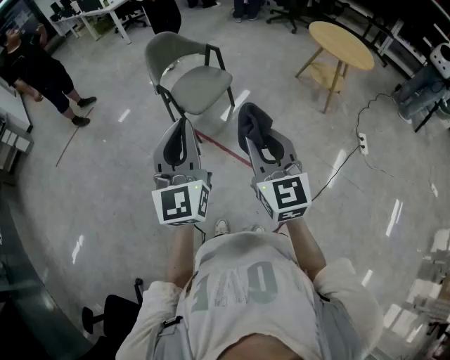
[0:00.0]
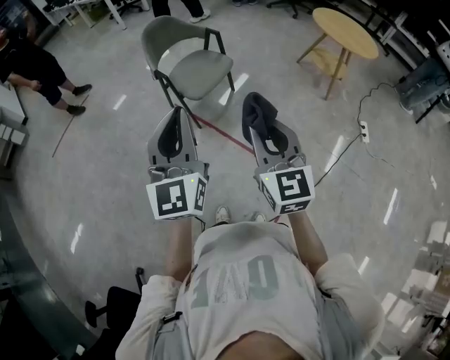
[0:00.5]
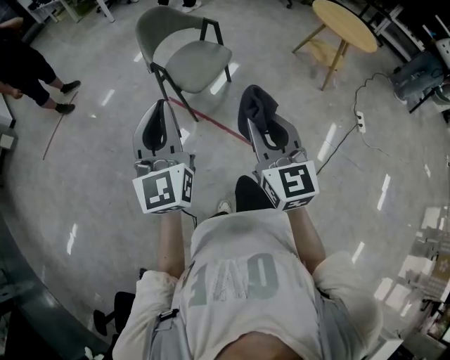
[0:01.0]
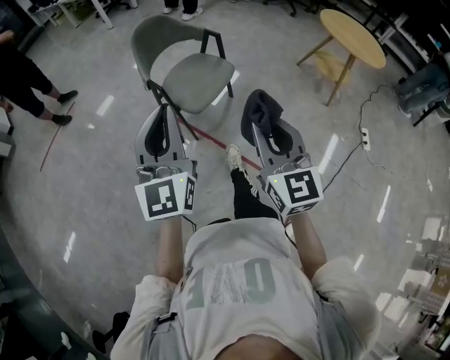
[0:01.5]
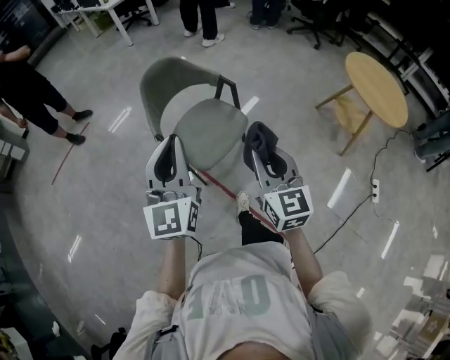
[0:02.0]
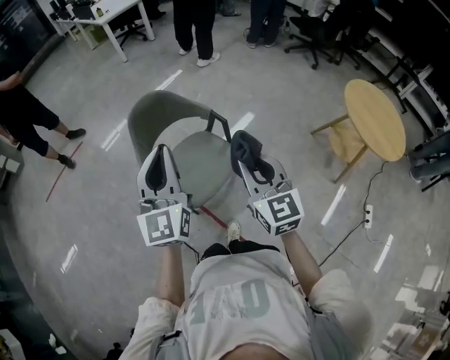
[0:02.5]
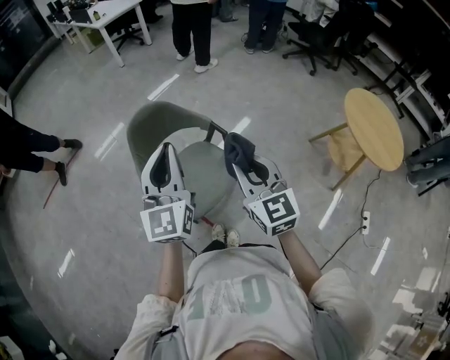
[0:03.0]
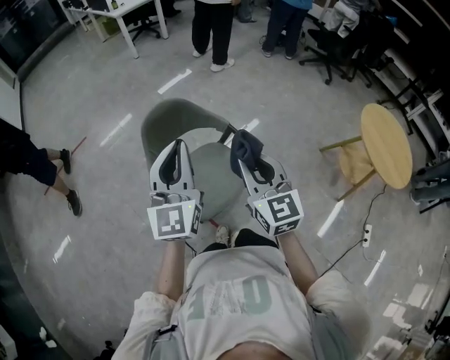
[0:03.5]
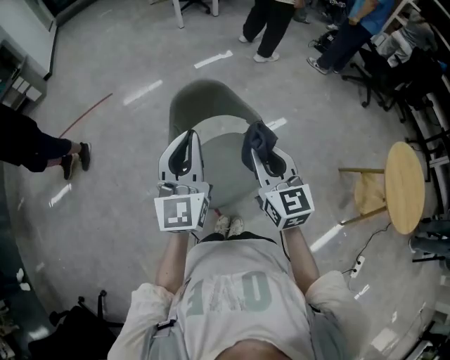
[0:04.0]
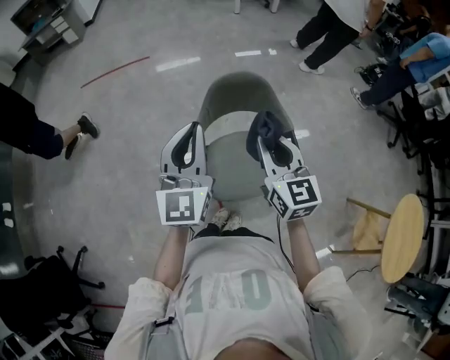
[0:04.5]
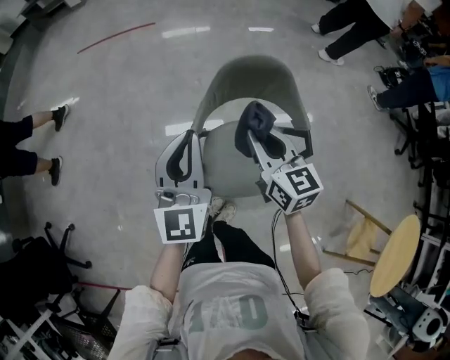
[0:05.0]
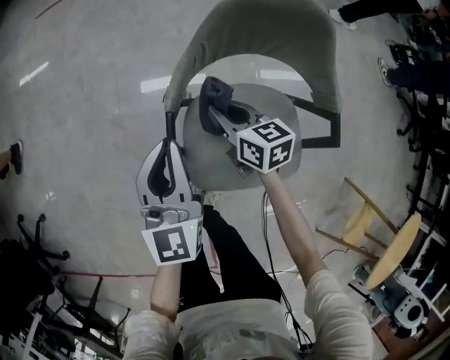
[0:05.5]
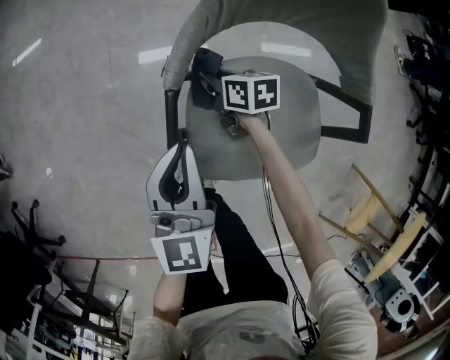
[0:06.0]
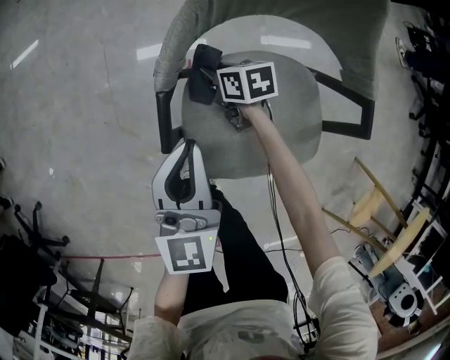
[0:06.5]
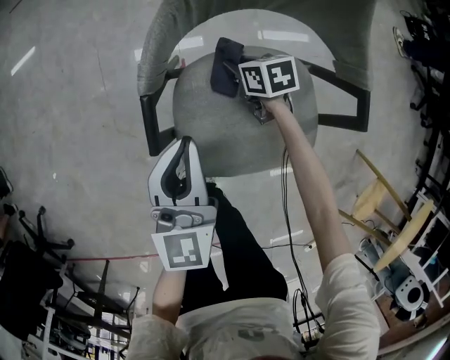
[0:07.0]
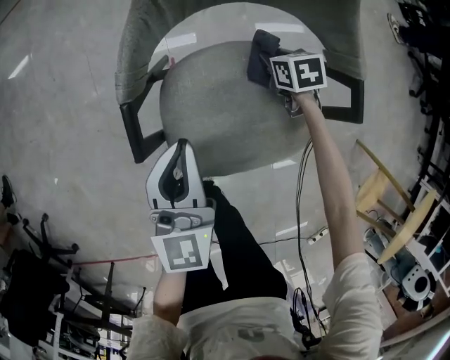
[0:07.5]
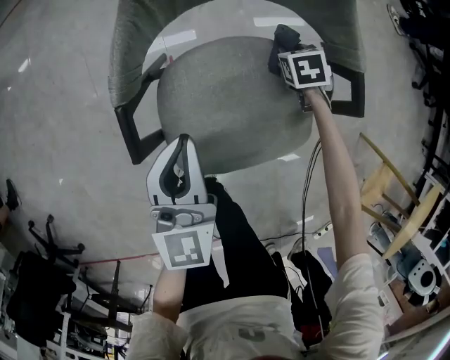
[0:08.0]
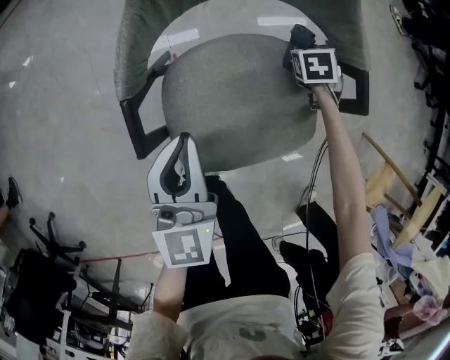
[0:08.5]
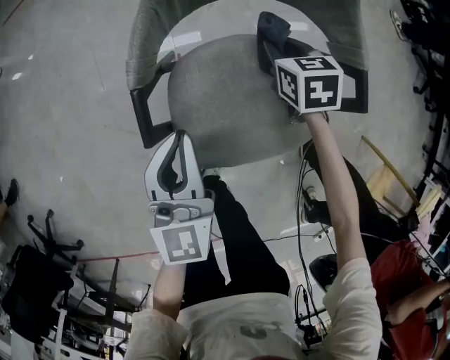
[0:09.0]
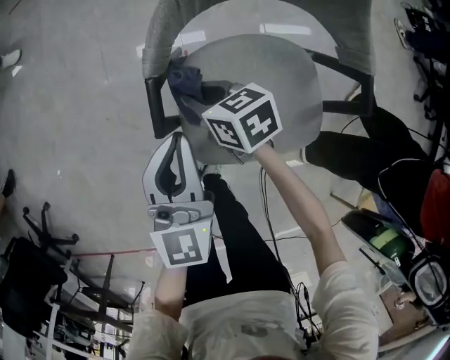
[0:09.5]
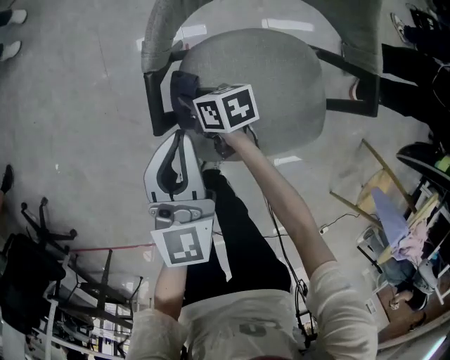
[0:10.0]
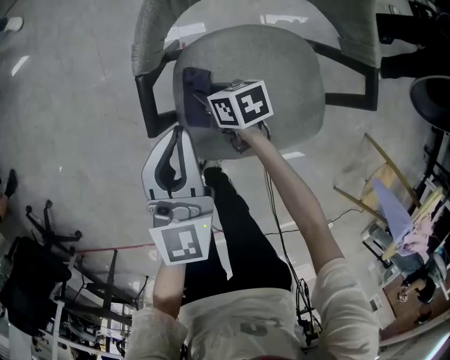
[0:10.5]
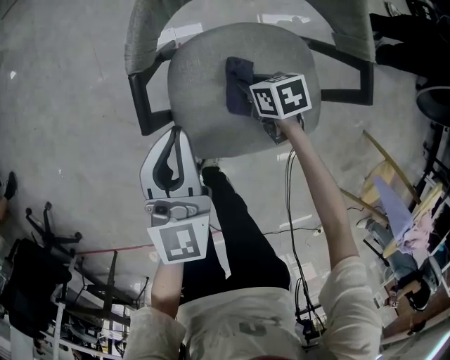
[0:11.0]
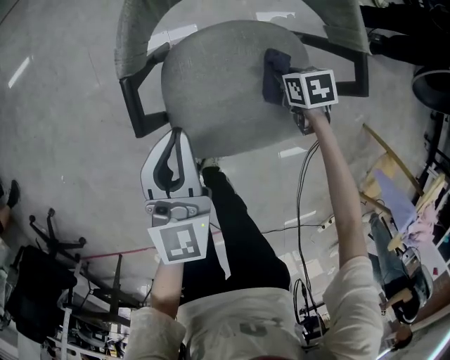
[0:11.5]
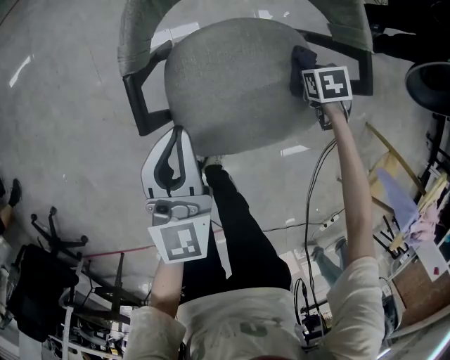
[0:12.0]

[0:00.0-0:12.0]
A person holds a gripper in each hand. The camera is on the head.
0:00.0 to 0:02.0: The two grippers go some 40 cm forward.
0:02.0 to 0:04.0: The two grippers go roughly 25 cm forward. The right gripper changes its angle by about 20 degrees.
0:04.0 to 0:06.0: Both grippers move downward, approximately 50 cm. The right gripper tilts its fingers approximately 40 degrees downward. Meanwhile the left gripper changes its angle by about 40 degrees.
0:06.0 to 0:08.0: The left gripper changes place by some 10 cm. The right gripper moves some 30 cm, and swivels about 50 degrees.
0:08.0 to 0:10.0: The right gripper goes upward and returns, some 10 cm each way, and swivels some 50 degrees. The left gripper changes place by approximately 5 cm.
0:10.0 to 0:12.0: The right gripper ends up some 35 cm from where it was, and angles its fingers downward, by about 40 degrees.

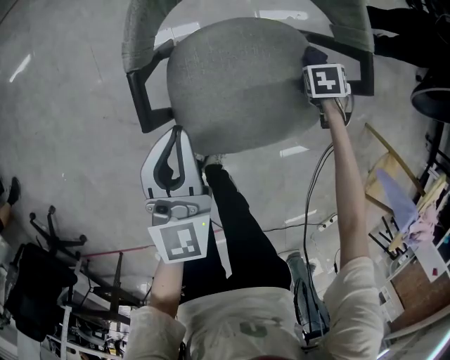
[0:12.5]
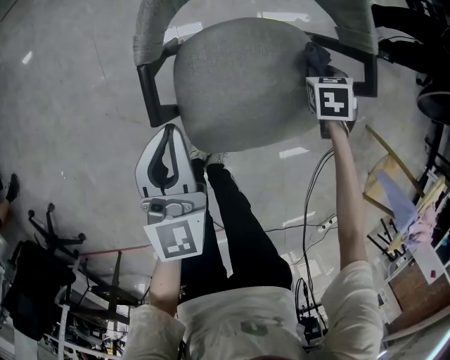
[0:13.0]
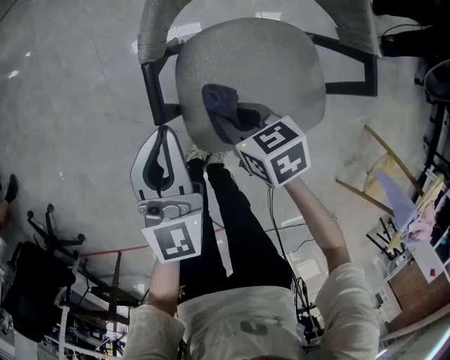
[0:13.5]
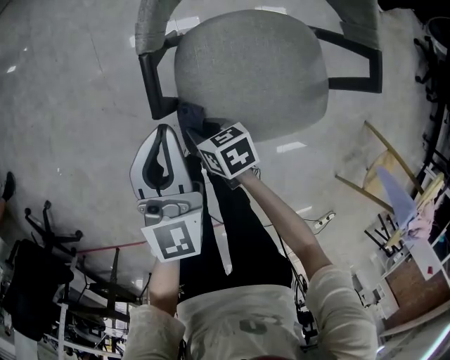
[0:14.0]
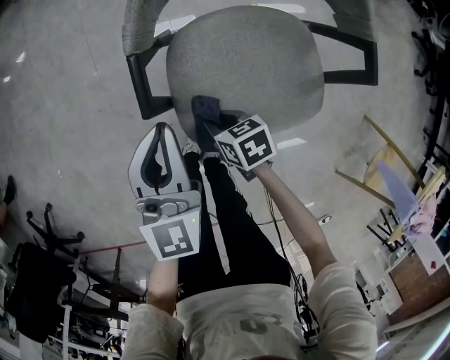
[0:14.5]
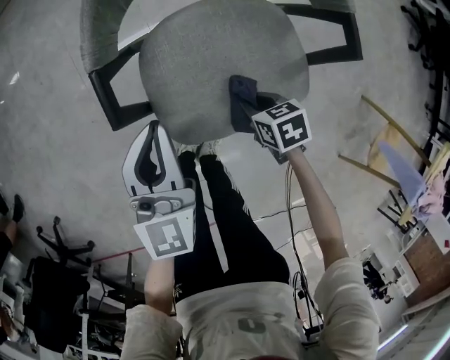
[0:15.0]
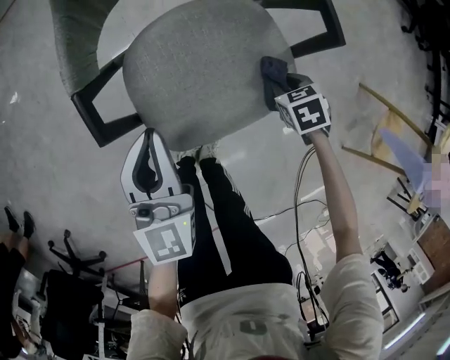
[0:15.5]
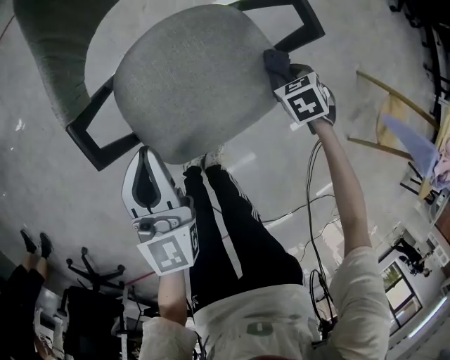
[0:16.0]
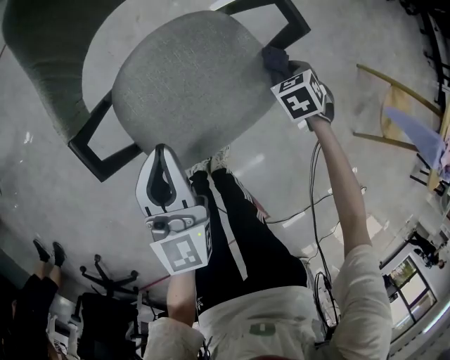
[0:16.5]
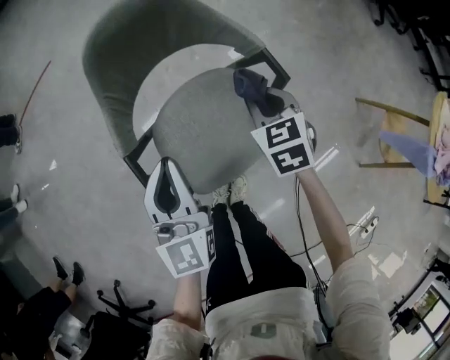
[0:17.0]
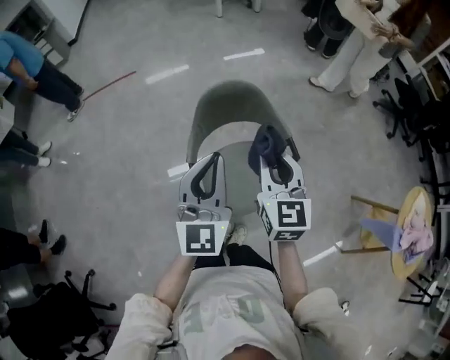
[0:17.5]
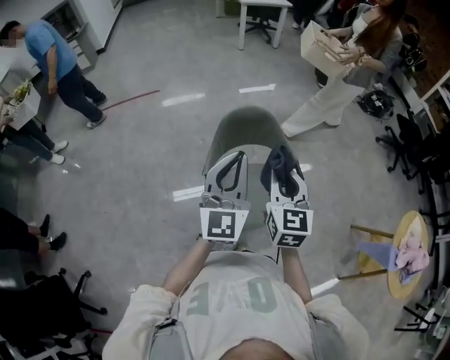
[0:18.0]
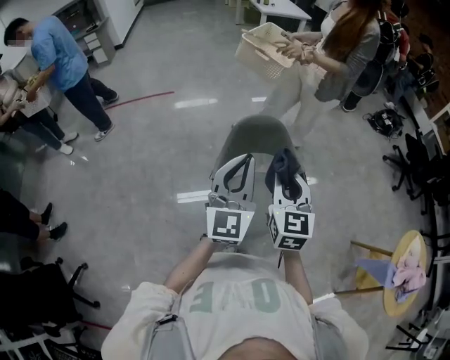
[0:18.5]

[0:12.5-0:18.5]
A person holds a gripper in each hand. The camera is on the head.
0:12.5 to 0:14.5: The right gripper reaches some 10 cm upward, then returns, and turns by approximately 50 degrees.
0:14.5 to 0:16.5: The right gripper changes place by about 35 cm, and changes its angle by approximately 40 degrees; the left gripper changes place by about 15 cm.
0:16.5 to 0:18.5: The left gripper goes approximately 40 cm upward, and swivels some 30 degrees; the right gripper heads upward and to the left, covering some 60 cm, and tips its fingers upward by roughly 60 degrees.

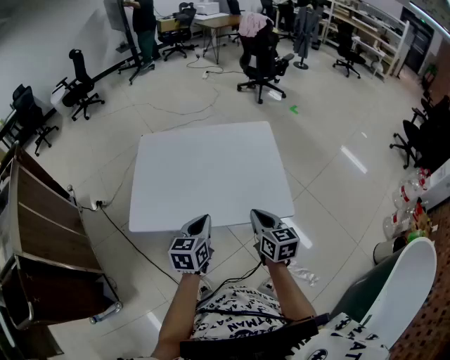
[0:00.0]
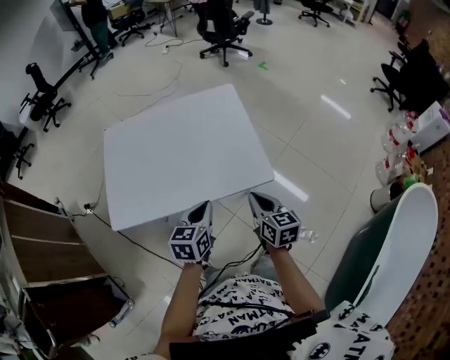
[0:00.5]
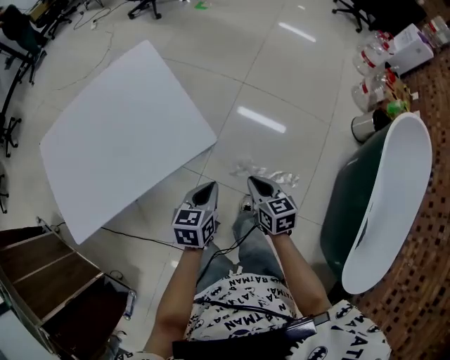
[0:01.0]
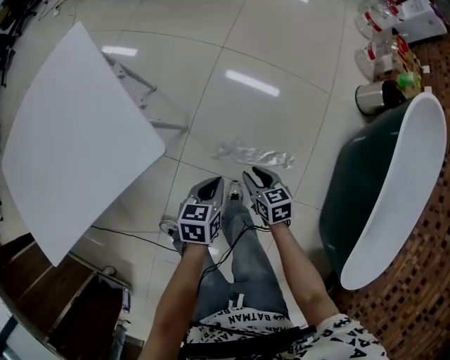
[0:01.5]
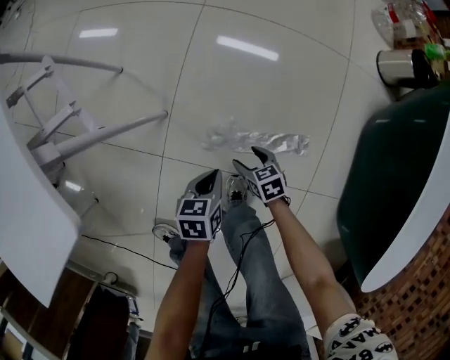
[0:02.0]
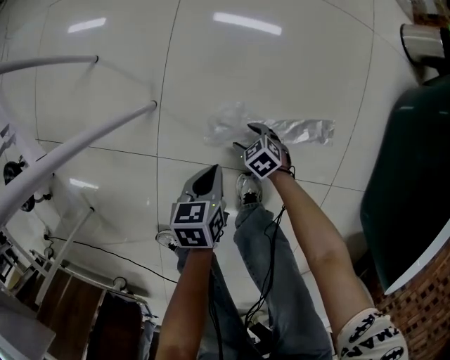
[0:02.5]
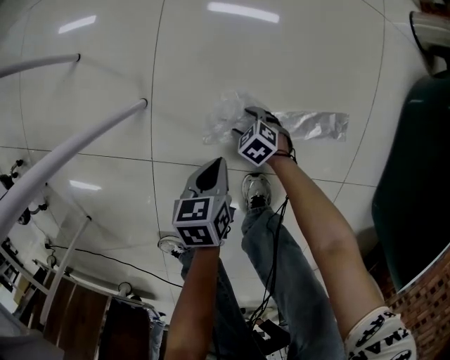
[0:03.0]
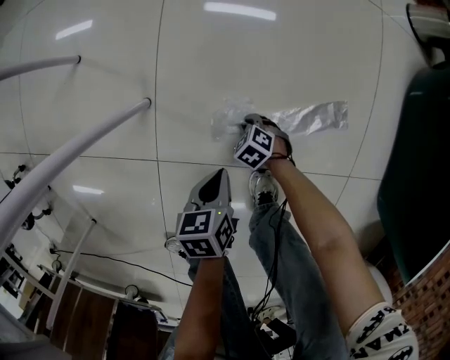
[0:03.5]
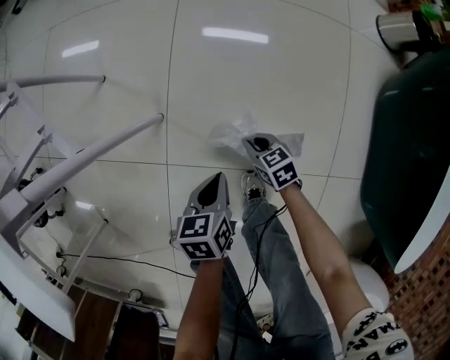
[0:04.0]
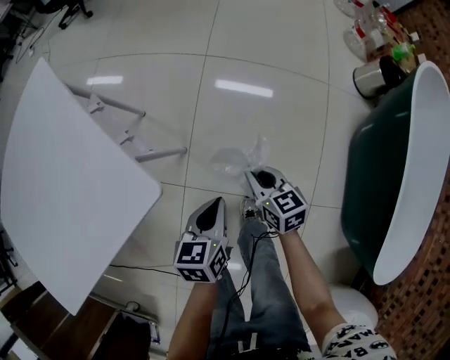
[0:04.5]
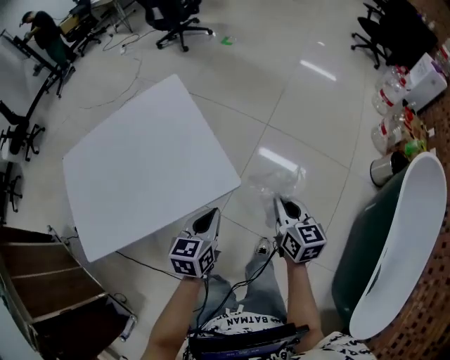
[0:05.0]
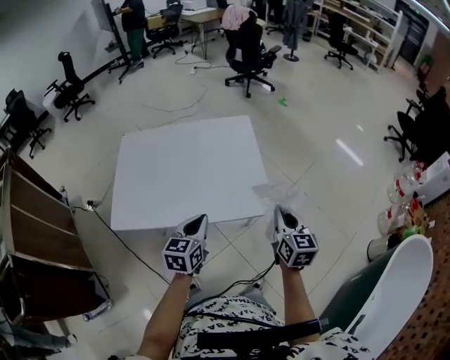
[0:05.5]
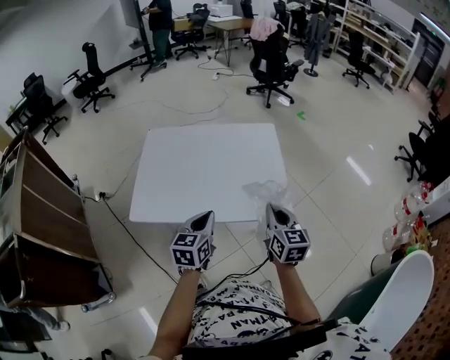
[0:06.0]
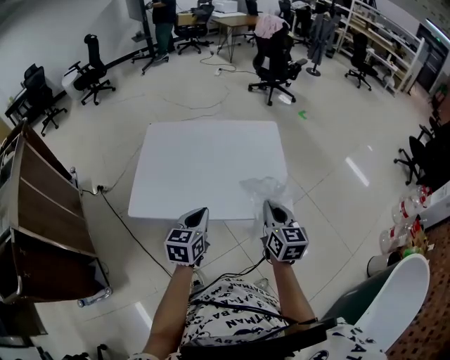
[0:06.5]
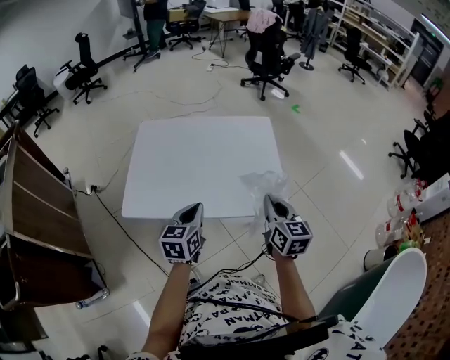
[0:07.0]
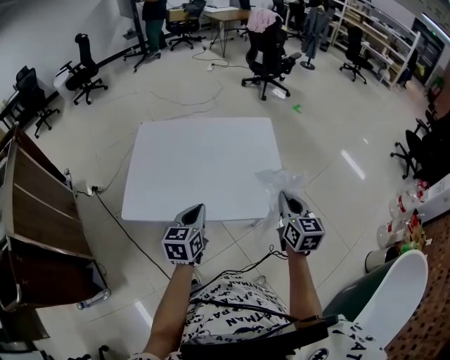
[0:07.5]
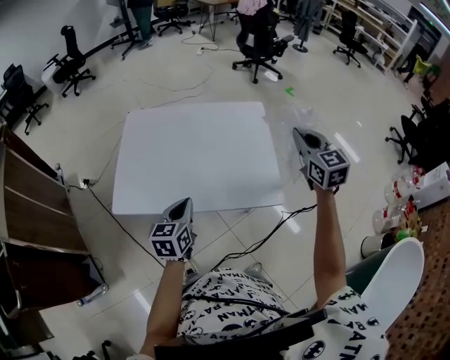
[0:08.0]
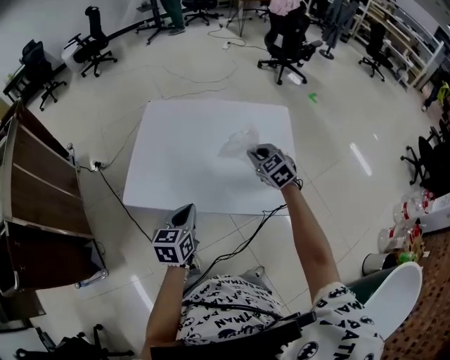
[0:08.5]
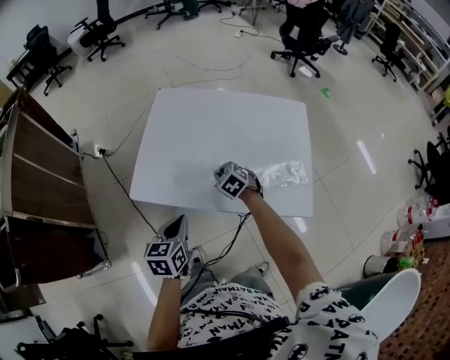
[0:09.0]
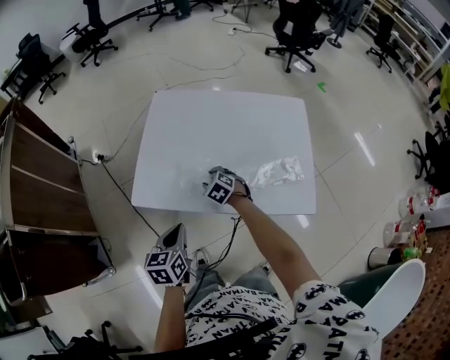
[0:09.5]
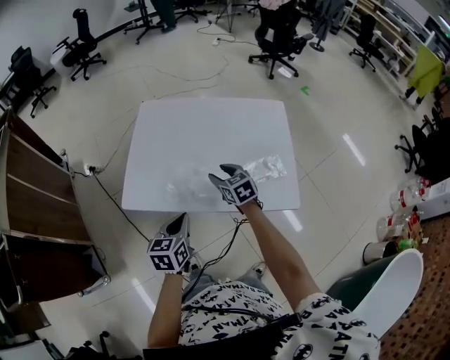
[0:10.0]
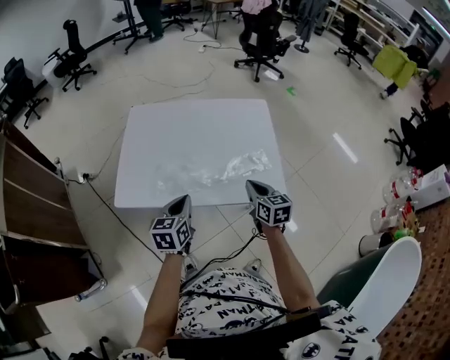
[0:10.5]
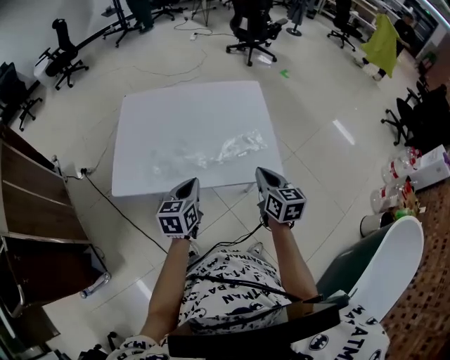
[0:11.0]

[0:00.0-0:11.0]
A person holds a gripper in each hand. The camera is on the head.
0:00.0 to 0:02.0: The grippers both shift downward by approximately 60 cm. The left gripper changes its angle by roughly 50 degrees. The right gripper tilts its fingers some 40 degrees downward, and opens up.
0:02.0 to 0:03.5: The left gripper heads downward, covering approximately 15 cm; the right gripper travels downward by roughly 25 cm, swivels about 30 degrees, and closes up.
0:03.5 to 0:05.5: Both grippers travel together upward, approximately 90 cm. The right gripper tilts its fingers approximately 60 degrees upward. Meanwhile the left gripper tips its fingers upward by approximately 30 degrees.
0:05.5 to 0:07.5: Both grippers travel together to the left, approximately 10 cm.
0:07.5 to 0:09.0: The right gripper shifts by roughly 40 cm, and points its fingers some 40 degrees further downward. Meanwhile the left gripper ends up some 15 cm from where it was.
0:09.0 to 0:11.0: The right gripper goes roughly 35 cm to the right, backward and upward, points its fingers roughly 30 degrees further upward, and opens, then closes once more. Meanwhile the left gripper travels to the right by approximately 15 cm.
